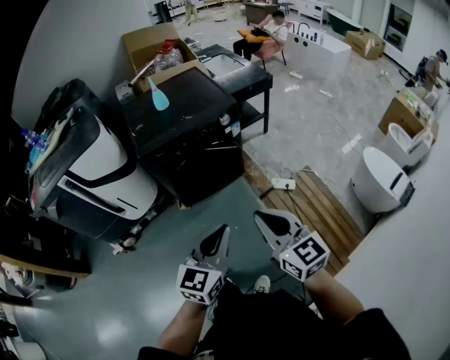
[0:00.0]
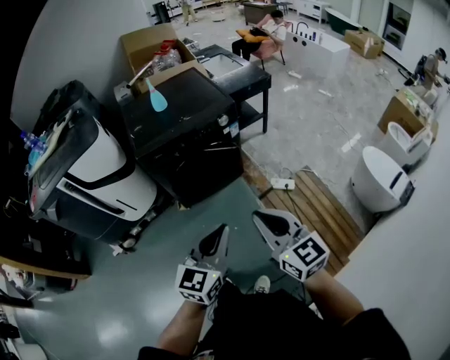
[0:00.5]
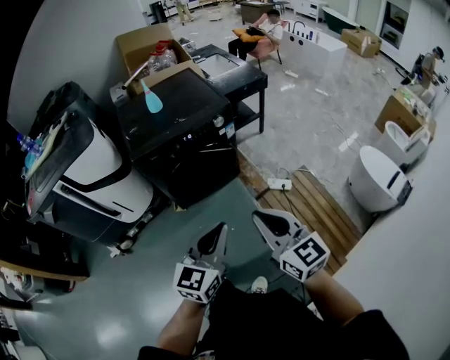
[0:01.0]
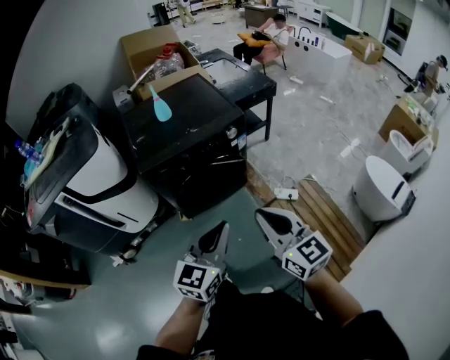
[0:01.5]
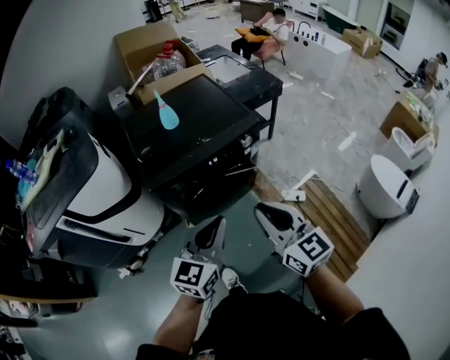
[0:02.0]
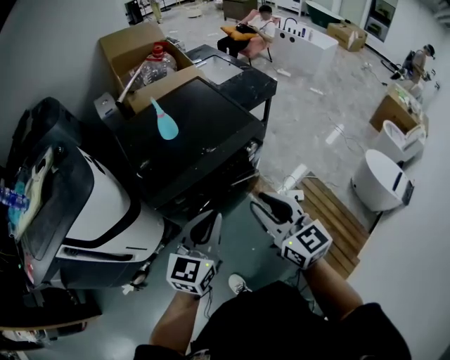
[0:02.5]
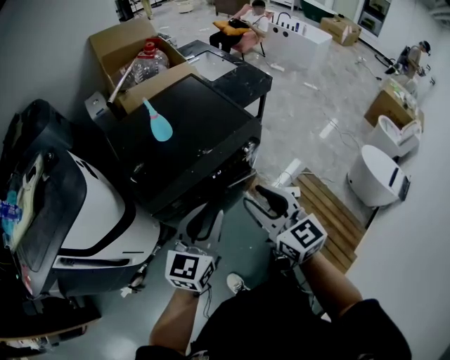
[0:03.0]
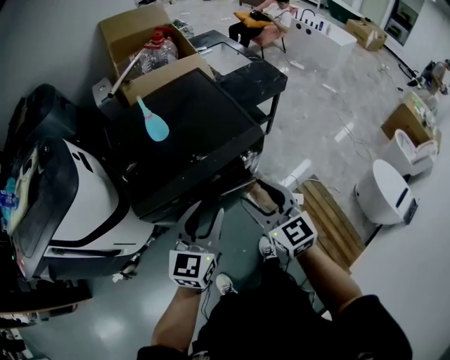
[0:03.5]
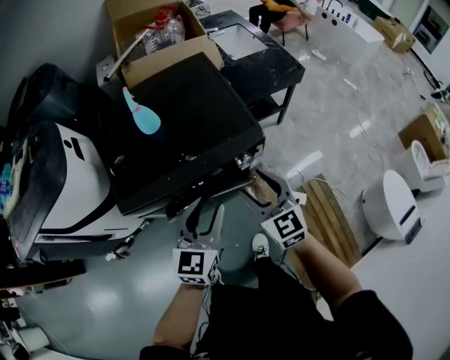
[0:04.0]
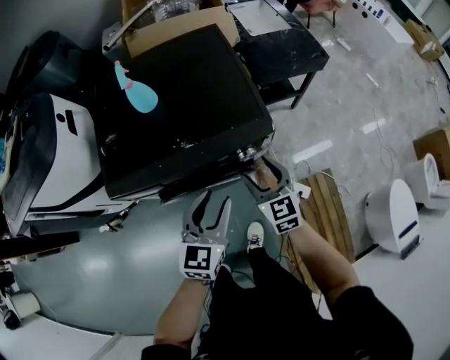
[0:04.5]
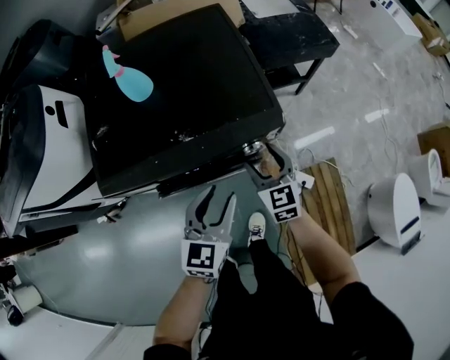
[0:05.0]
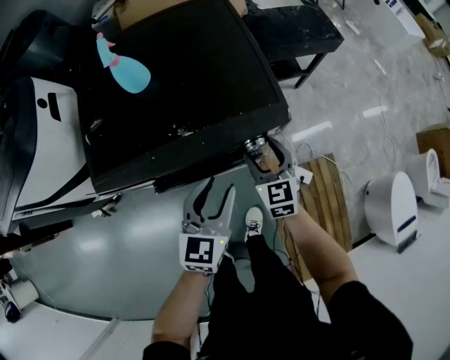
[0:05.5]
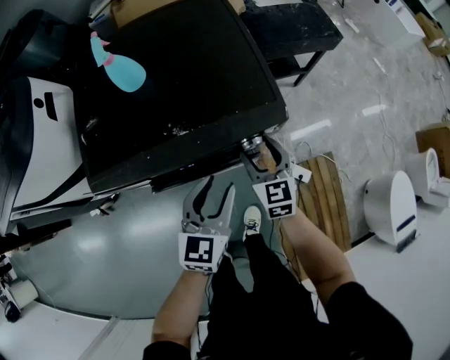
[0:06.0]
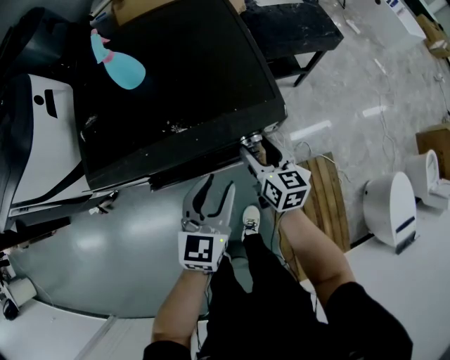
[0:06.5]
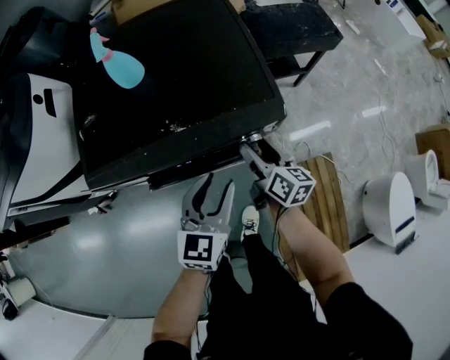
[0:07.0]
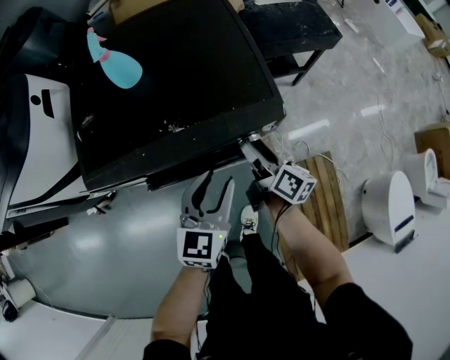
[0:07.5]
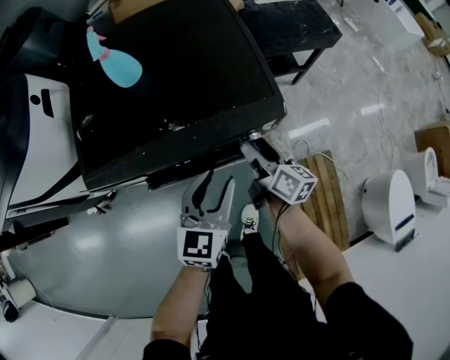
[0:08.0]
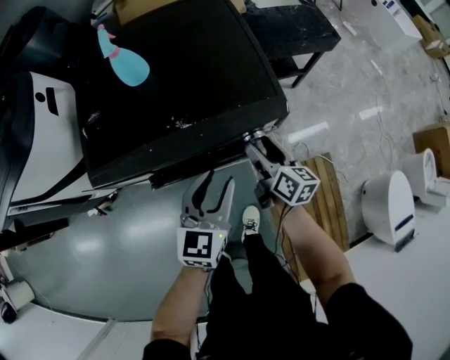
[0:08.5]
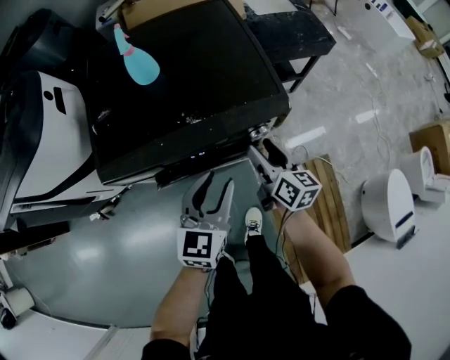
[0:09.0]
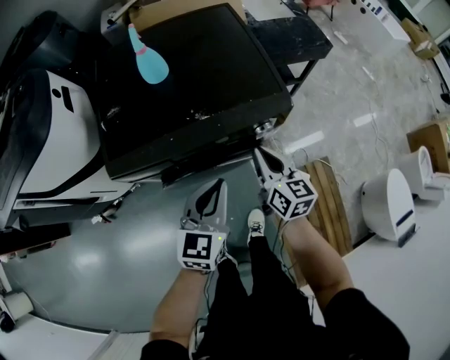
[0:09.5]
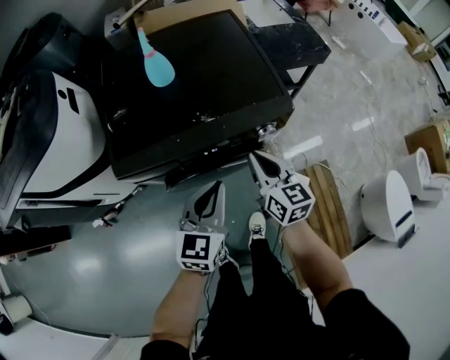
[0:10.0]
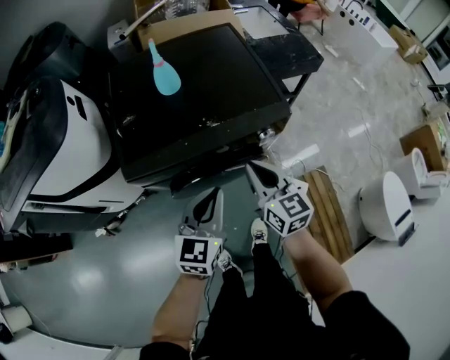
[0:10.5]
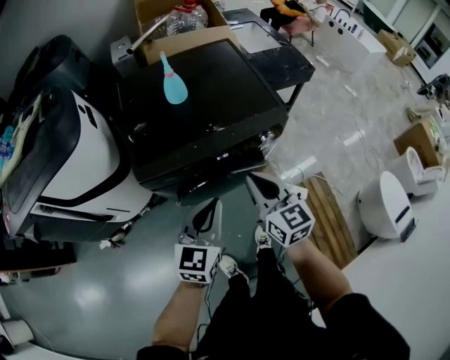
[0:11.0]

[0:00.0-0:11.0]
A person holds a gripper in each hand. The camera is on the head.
0.0 to 2.0 s: The two grippers go roughly 25 cm forward and to the left.
2.0 to 3.5 s: The two grippers go approximately 20 cm forward. The right gripper opens up. Meanwhile the left gripper opens.
3.5 to 5.5 s: The left gripper travels downward, forward and to the right by some 25 cm, and swivels some 20 degrees; the right gripper heads downward and forward, covering roughly 30 cm.
5.5 to 7.5 s: The right gripper rotates around the line of its fingers by about 60 degrees, clockwise from behind.
7.5 to 9.0 s: The left gripper changes place by about 5 cm. The right gripper changes place by roughly 5 cm, and turns by about 20 degrees.
9.0 to 11.0 s: The left gripper goes approximately 20 cm to the left, backward and upward, and closes its fingers. The right gripper travels upward, backward and to the left by some 25 cm, turns by roughly 30 degrees, and closes up.

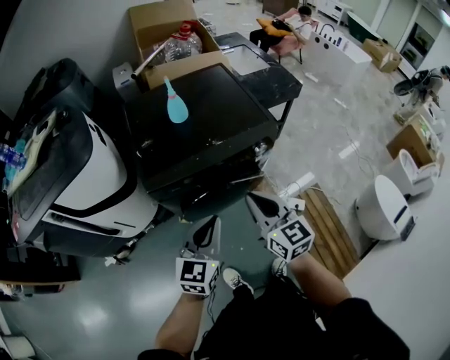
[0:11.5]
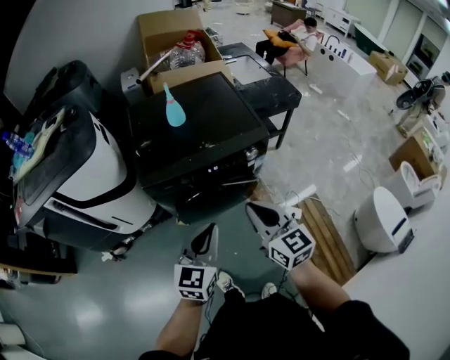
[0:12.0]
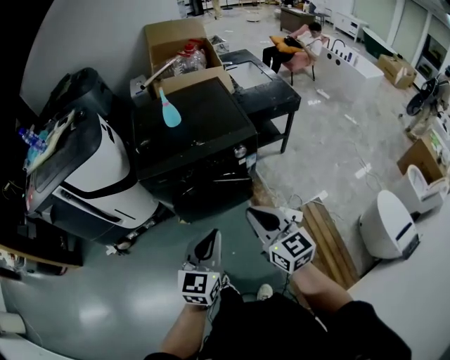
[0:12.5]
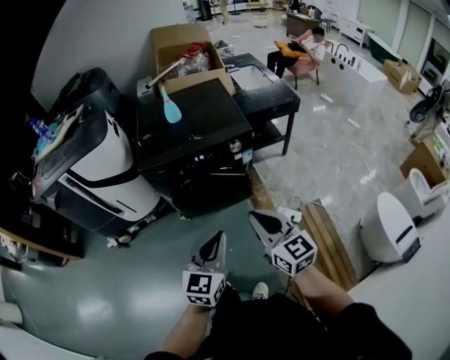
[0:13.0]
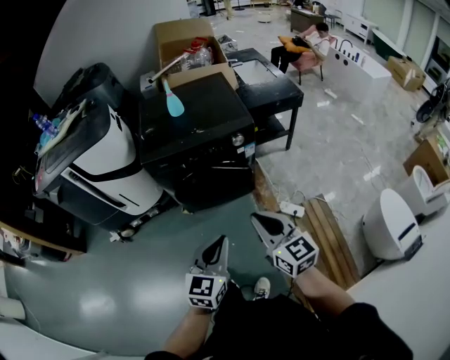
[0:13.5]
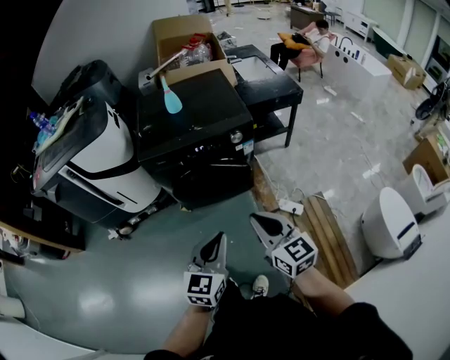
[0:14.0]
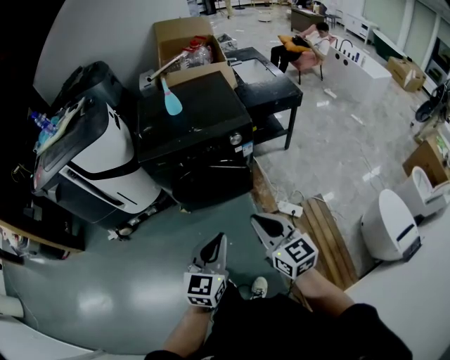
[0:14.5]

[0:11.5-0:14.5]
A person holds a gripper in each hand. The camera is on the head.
11.5 to 13.0 s: The grippers both shift backward and to the right by some 25 cm.
13.0 to 14.5 s: The grippers move only a little.

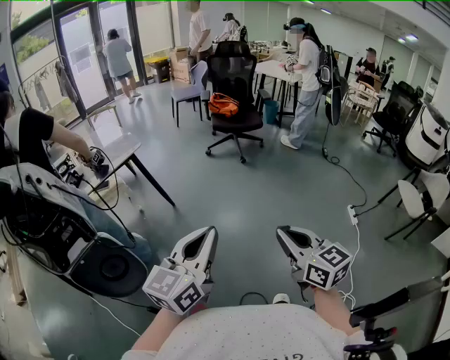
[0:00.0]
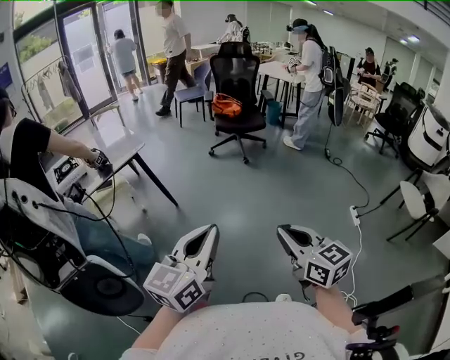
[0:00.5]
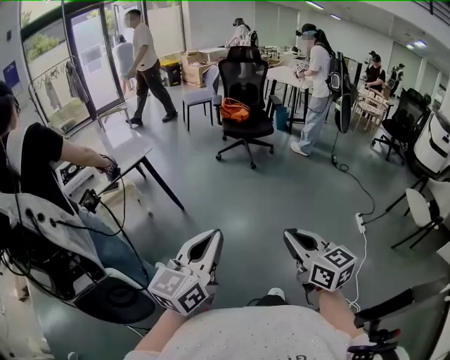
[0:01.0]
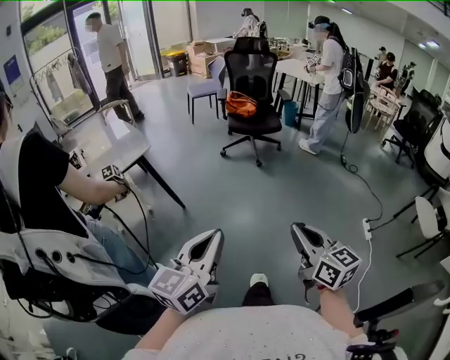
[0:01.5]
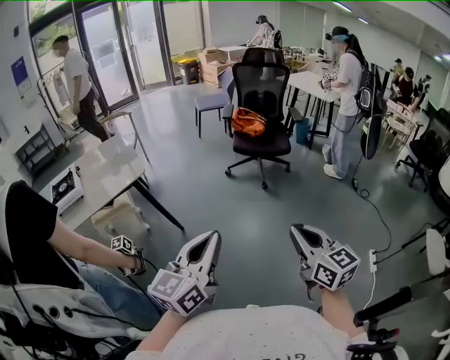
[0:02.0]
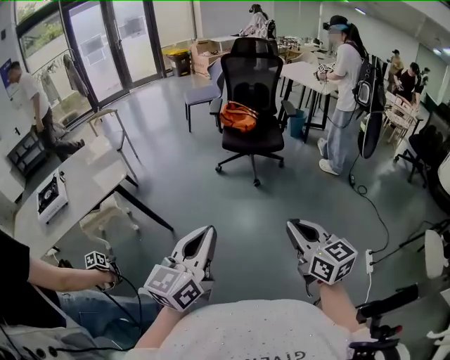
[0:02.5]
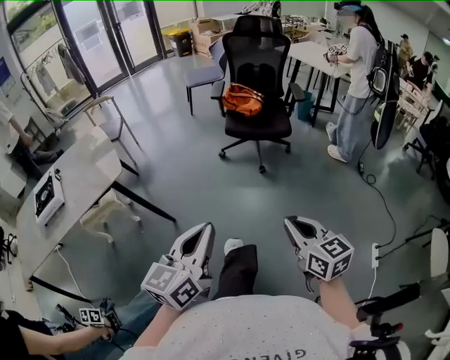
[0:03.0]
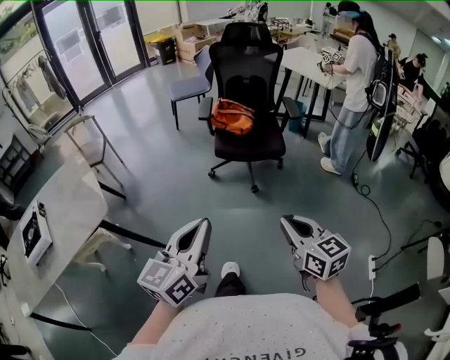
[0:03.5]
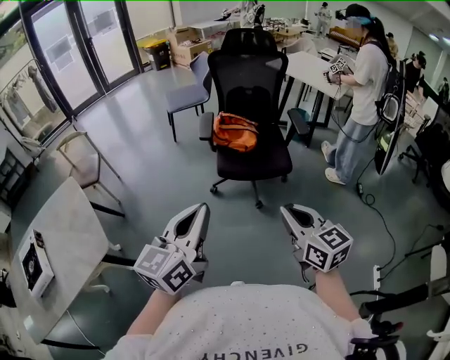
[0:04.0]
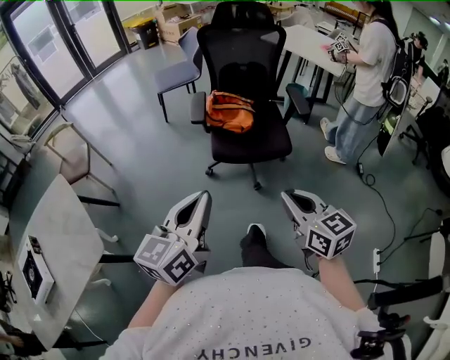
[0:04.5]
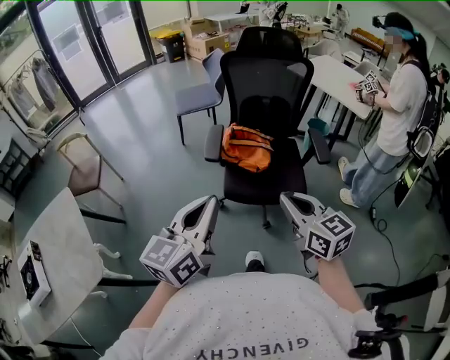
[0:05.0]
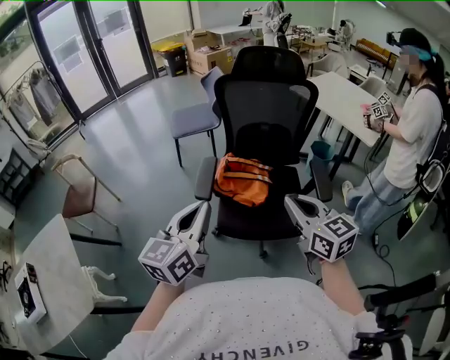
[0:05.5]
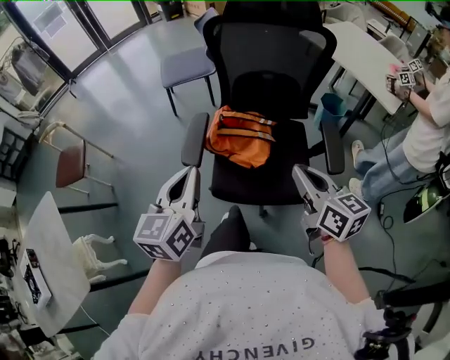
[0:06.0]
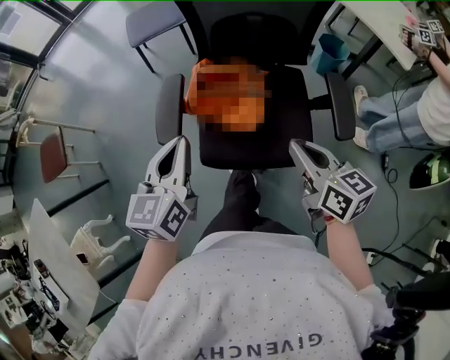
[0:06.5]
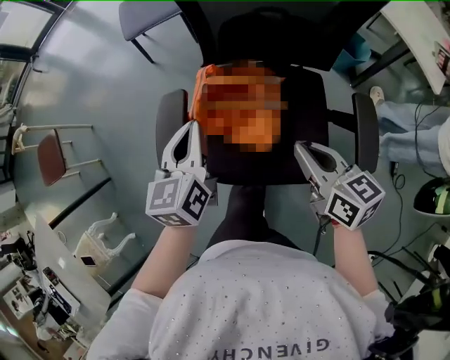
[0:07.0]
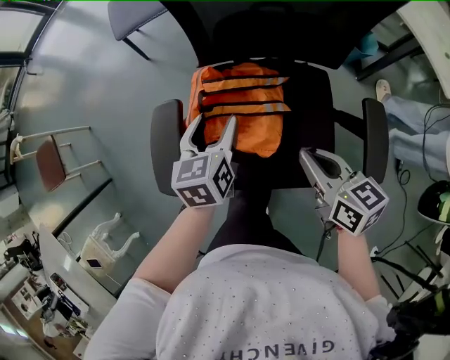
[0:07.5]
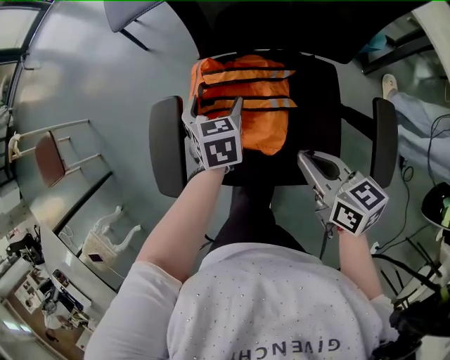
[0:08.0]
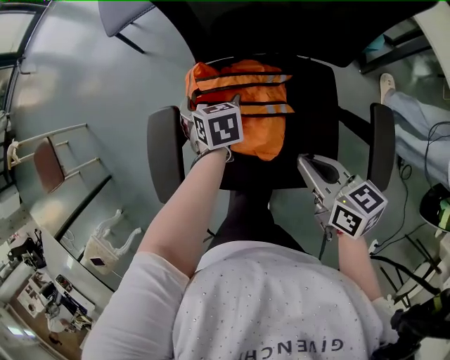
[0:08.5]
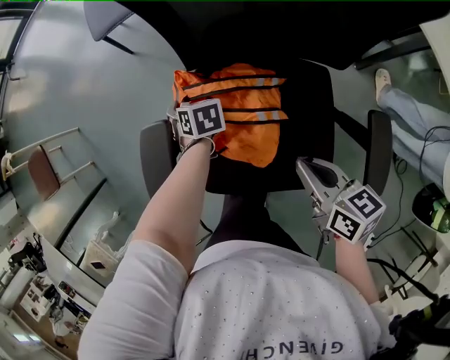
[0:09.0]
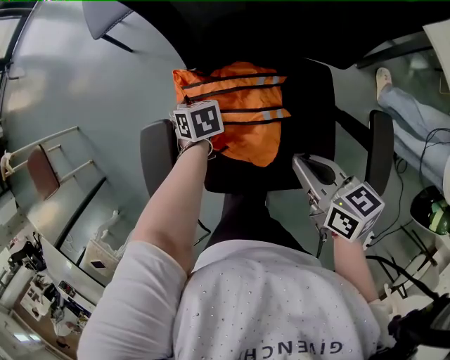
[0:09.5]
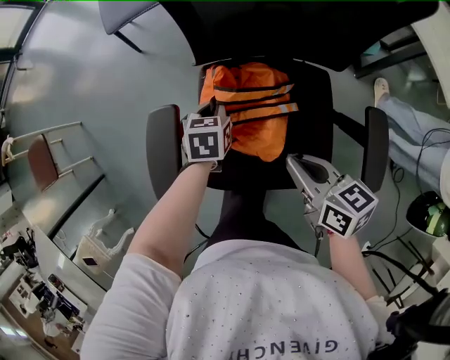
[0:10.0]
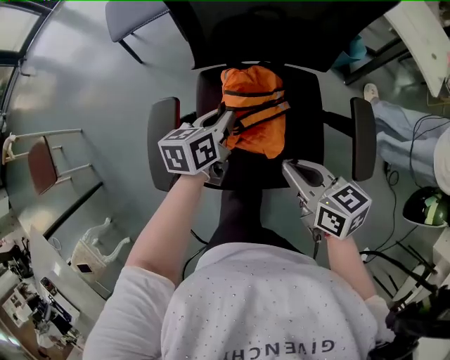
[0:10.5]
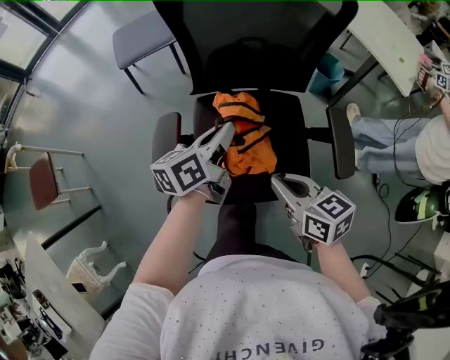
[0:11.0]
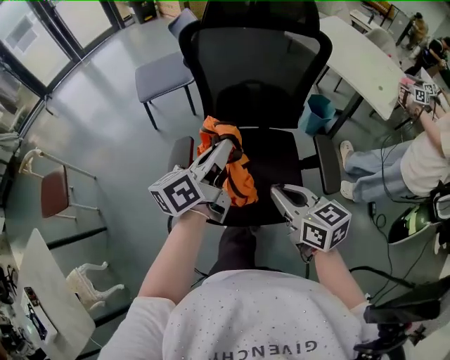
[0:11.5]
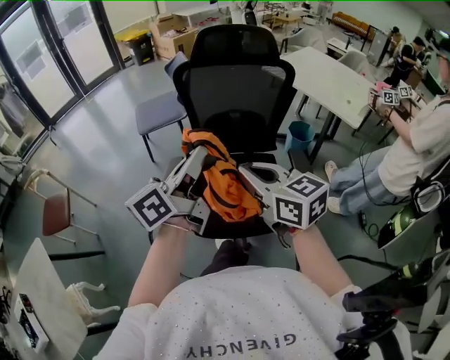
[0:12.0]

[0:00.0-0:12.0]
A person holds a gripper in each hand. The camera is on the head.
0.0 to 2.0 s: The grippers both shift forward by roughly 30 cm.
2.0 to 4.0 s: Both grippers are carried forward, approximately 50 cm.
4.0 to 6.0 s: Both grippers are carried forward, approximately 50 cm. The left gripper changes its angle by approximately 20 degrees.
6.0 to 8.0 s: The left gripper is displaced downward and forward by some 50 cm, points its fingers some 40 degrees further downward, and opens, while the right gripper travels downward and forward by approximately 30 cm, and swivels approximately 30 degrees.
8.0 to 10.0 s: The left gripper reaches approximately 10 cm downward, then returns, and closes up.
10.0 to 12.0 s: The right gripper heads upward and backward, covering approximately 35 cm, and rotates roughly 30 degrees. Meanwhile the left gripper shifts roughly 50 cm upward and backward, and points its fingers approximately 60 degrees further upward.

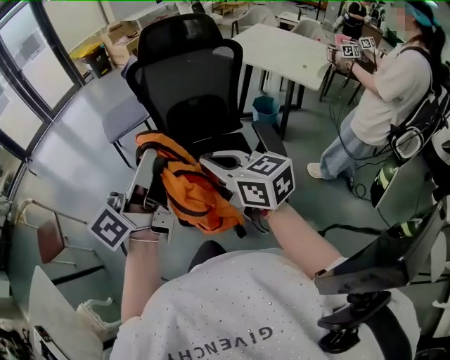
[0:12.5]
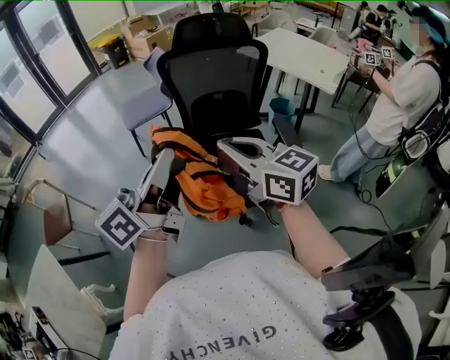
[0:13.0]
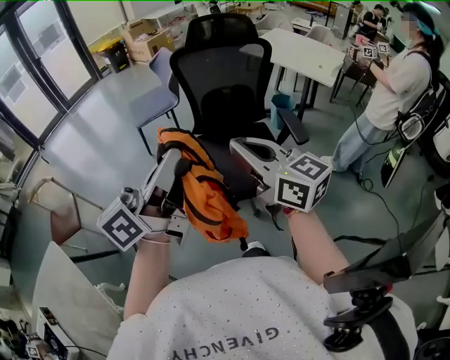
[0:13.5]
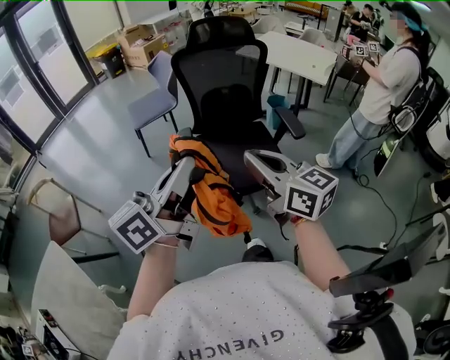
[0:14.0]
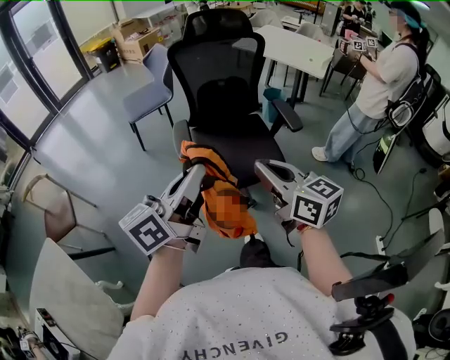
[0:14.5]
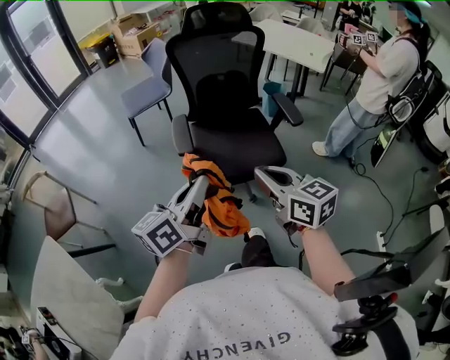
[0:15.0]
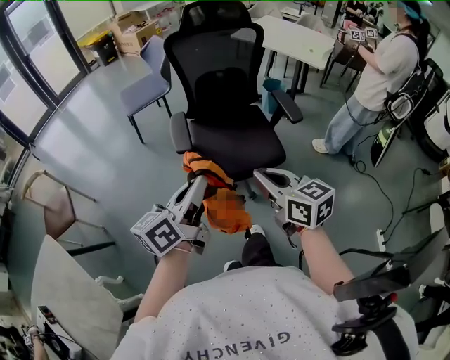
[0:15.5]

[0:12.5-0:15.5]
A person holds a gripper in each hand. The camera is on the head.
12.5 to 14.0 s: The grippers both shift backward and to the left by roughly 25 cm.
14.0 to 15.5 s: The grippers both shift downward by some 10 cm.
